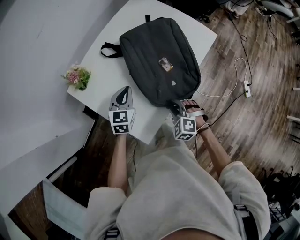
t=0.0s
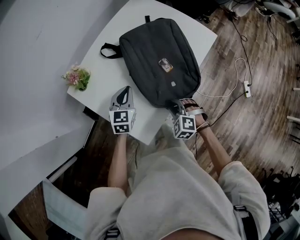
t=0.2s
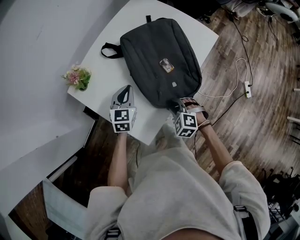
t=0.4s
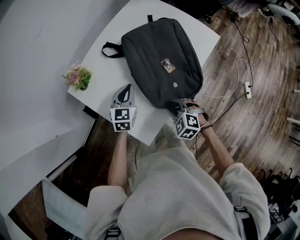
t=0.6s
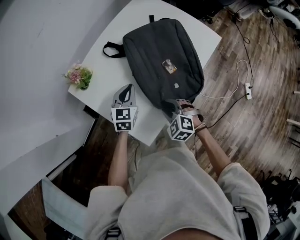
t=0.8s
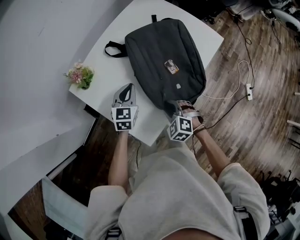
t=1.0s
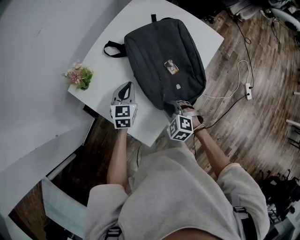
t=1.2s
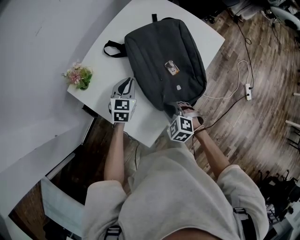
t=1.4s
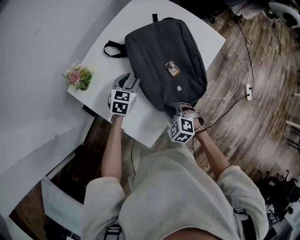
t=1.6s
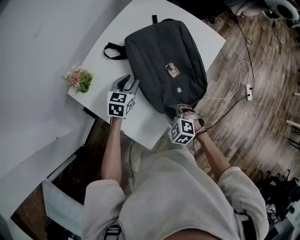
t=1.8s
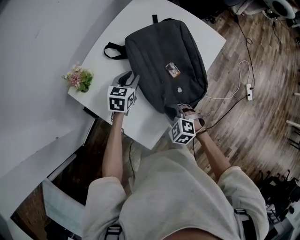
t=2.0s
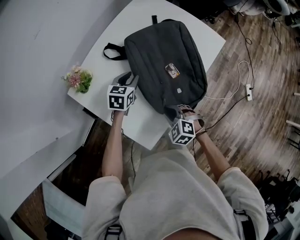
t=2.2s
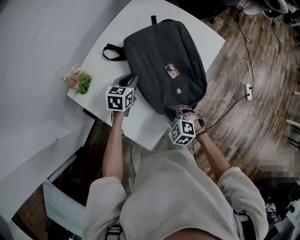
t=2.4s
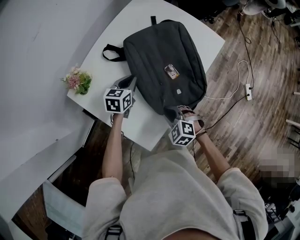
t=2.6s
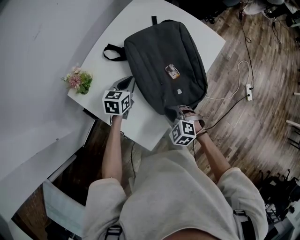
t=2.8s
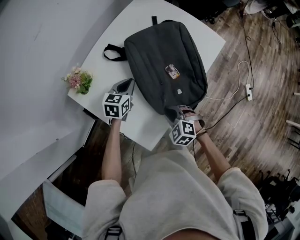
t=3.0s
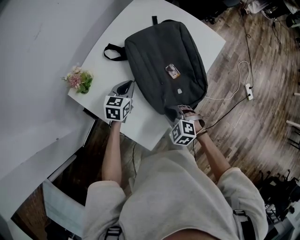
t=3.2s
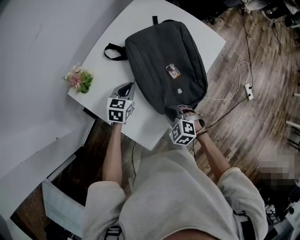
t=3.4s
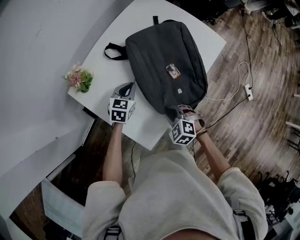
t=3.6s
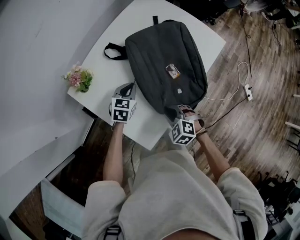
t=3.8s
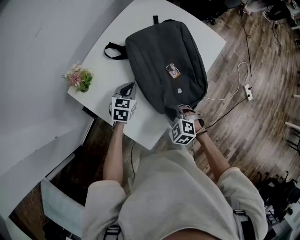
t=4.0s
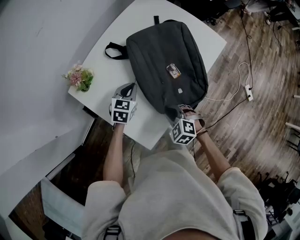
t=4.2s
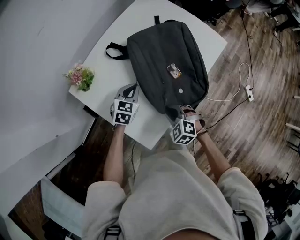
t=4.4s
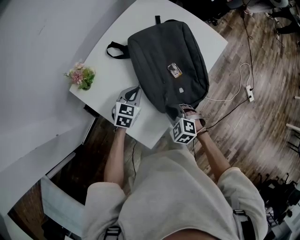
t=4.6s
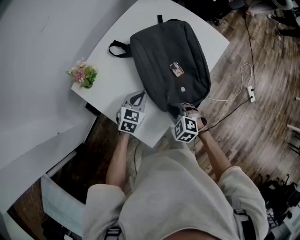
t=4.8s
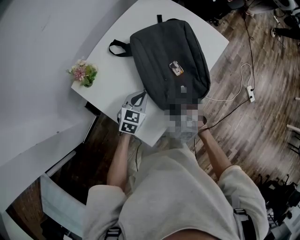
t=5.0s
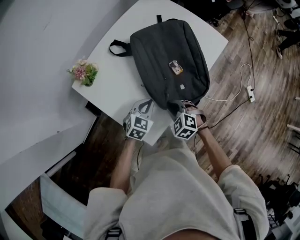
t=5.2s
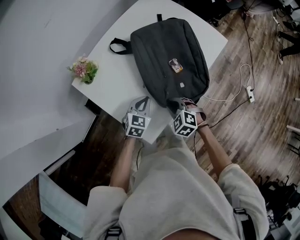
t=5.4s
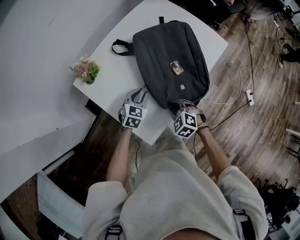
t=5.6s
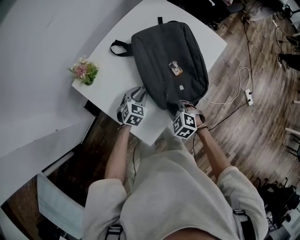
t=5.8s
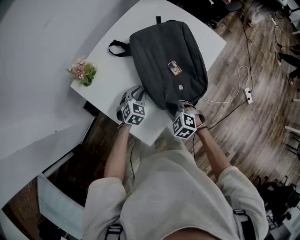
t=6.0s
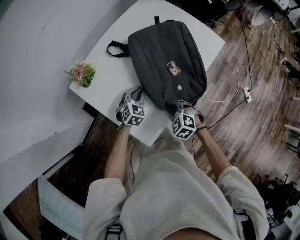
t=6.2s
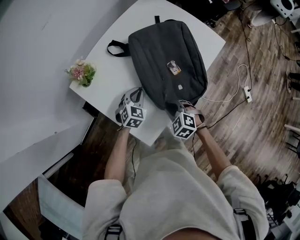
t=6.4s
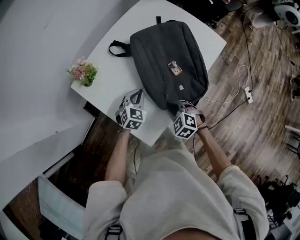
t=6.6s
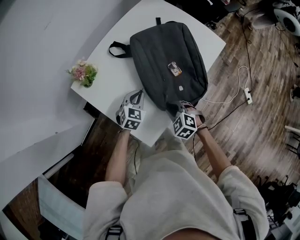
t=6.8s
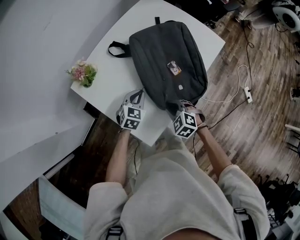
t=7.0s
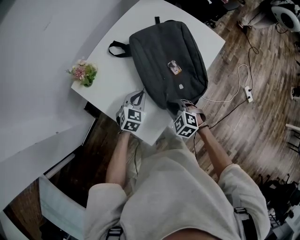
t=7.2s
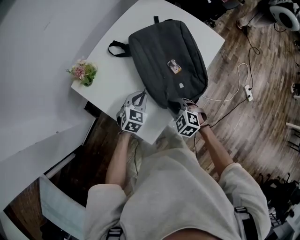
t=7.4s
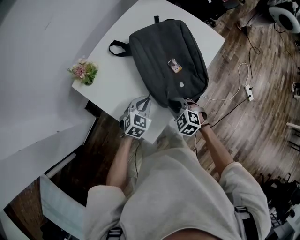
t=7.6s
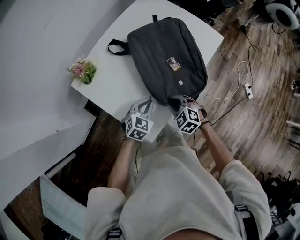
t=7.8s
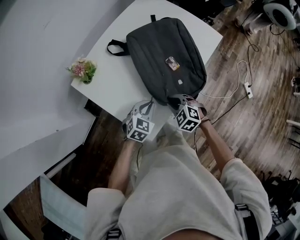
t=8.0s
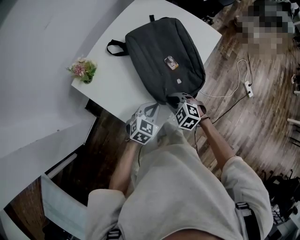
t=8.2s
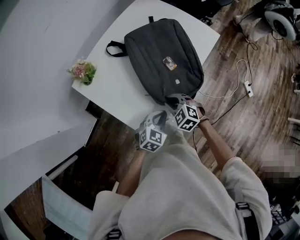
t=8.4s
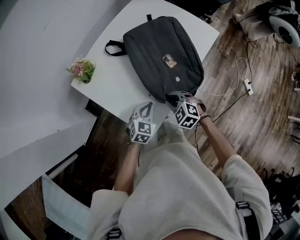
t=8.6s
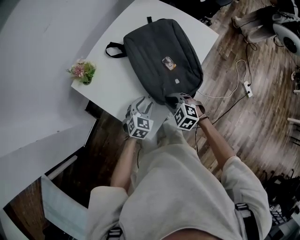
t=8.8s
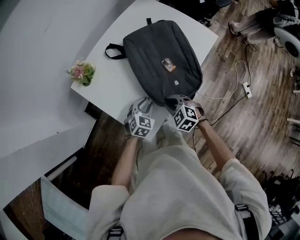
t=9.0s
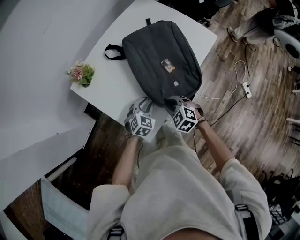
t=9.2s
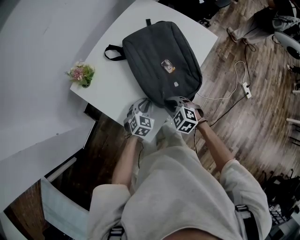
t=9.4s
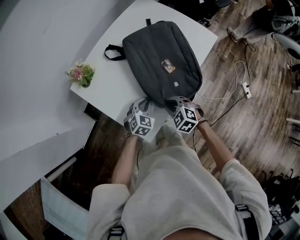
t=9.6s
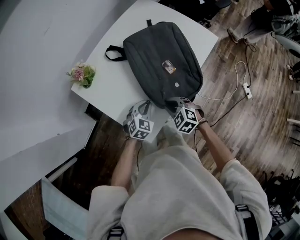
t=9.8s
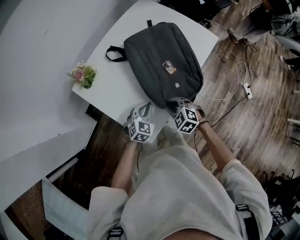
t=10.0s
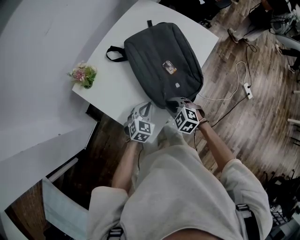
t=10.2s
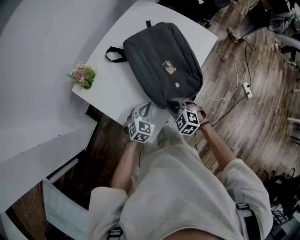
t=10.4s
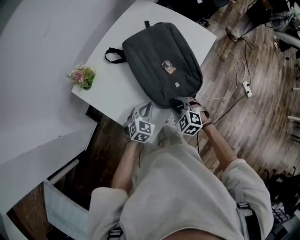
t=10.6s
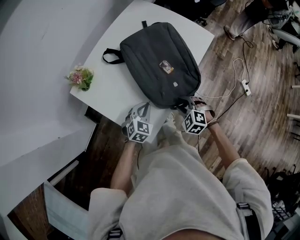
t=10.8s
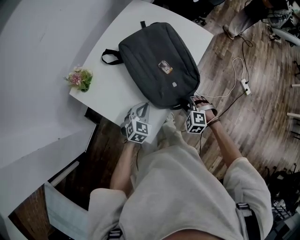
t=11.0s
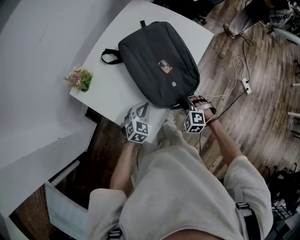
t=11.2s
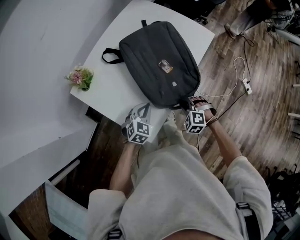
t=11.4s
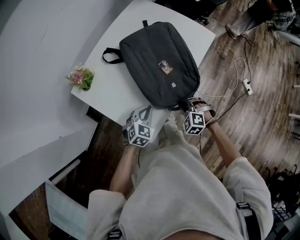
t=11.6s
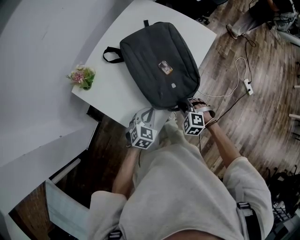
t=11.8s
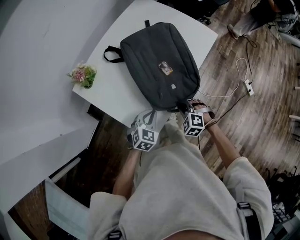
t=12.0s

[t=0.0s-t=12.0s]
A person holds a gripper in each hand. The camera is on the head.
t=0.0s to t=1.6s: The left gripper heads forward and downward, covering approximately 10 cm, and opens its fingers.
t=1.6s to t=3.0s: The left gripper closes.
t=3.0s to t=4.4s: The grippers stay close to where they were, moving slightly.
t=6.0s to t=7.6s: The left gripper moves backward, about 5 cm.
t=7.6s to t=9.0s: The left gripper moves about 10 cm backward and comes back, and opens up.
t=9.0s to t=10.4s: The left gripper closes up.
t=10.4s to t=12.0s: The right gripper moves to the right, about 5 cm.

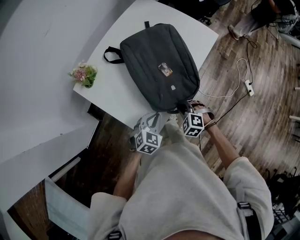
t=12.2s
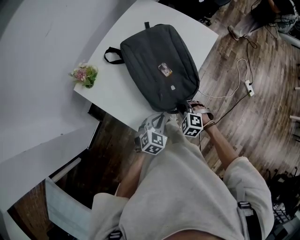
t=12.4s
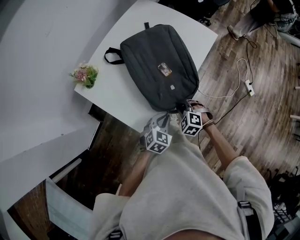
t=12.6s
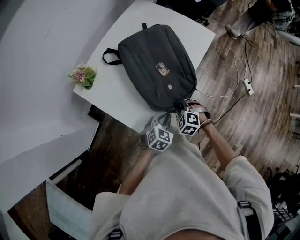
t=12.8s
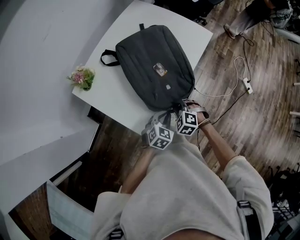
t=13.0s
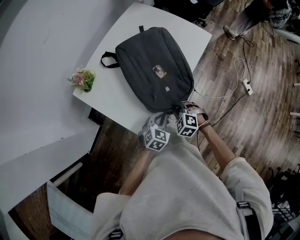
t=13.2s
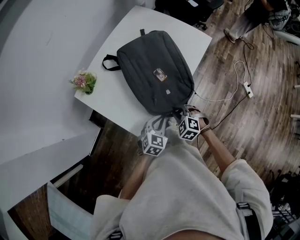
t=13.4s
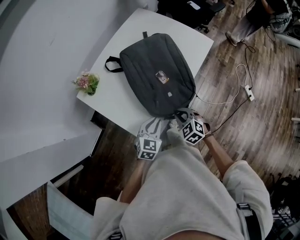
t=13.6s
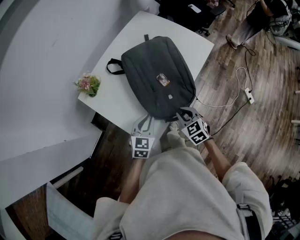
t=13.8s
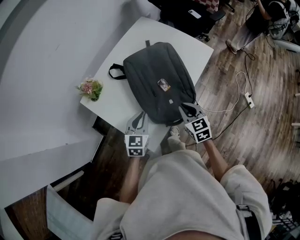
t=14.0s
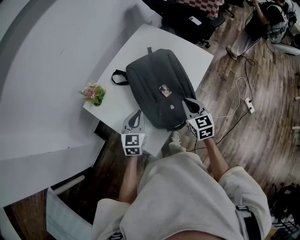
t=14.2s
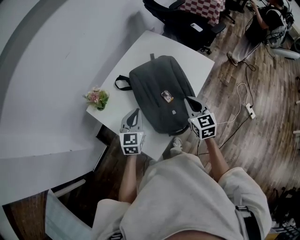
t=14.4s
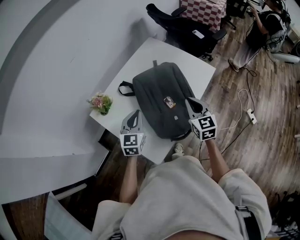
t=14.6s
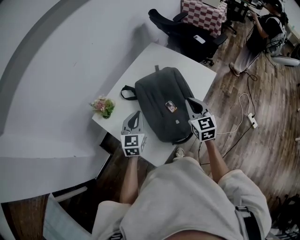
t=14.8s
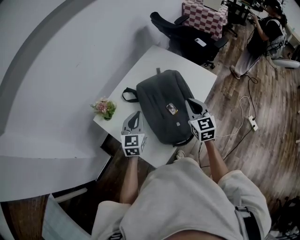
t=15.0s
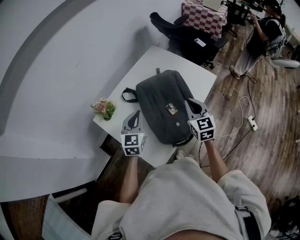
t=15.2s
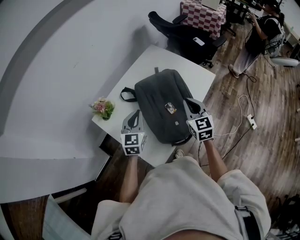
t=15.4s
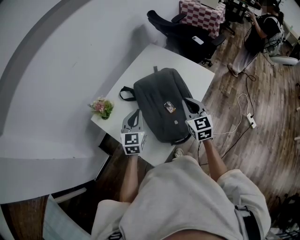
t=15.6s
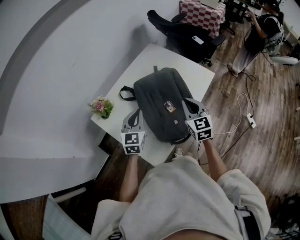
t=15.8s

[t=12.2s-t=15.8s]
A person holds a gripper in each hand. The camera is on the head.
t=12.2s to t=14.0s: The right gripper heads upward and forward, covering roughly 15 cm, and rotates around the line of its fingers by approximately 40 degrees, clockwise from behind, while the left gripper goes about 10 cm upward, forward and to the left, and swivels approximately 30 degrees.
t=14.0s to t=15.8s: The grippers both shift upward and forward by some 15 cm.

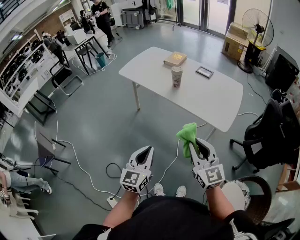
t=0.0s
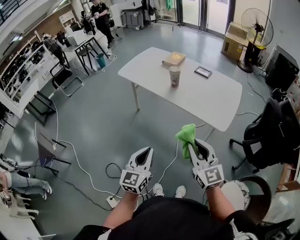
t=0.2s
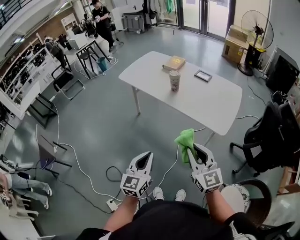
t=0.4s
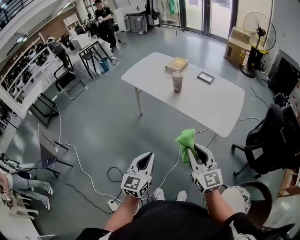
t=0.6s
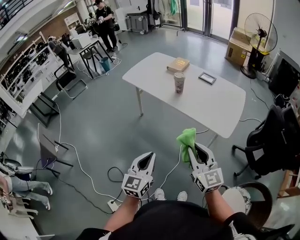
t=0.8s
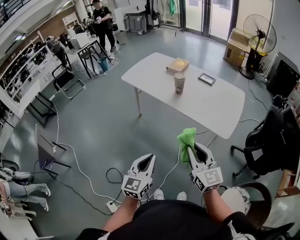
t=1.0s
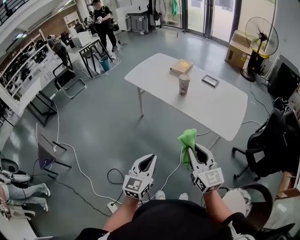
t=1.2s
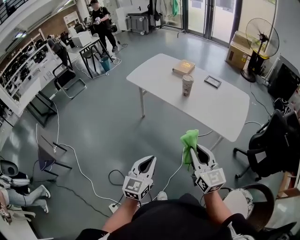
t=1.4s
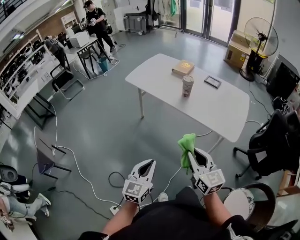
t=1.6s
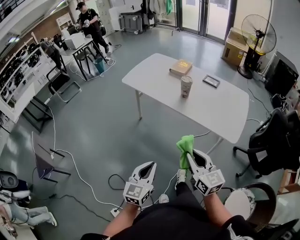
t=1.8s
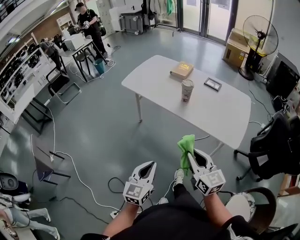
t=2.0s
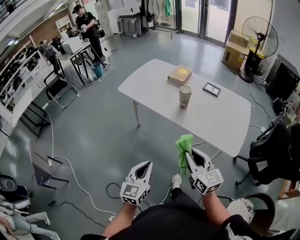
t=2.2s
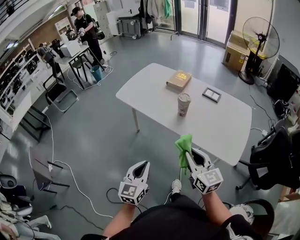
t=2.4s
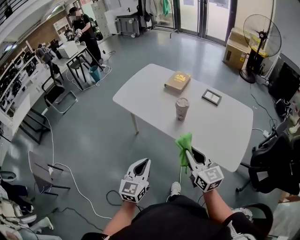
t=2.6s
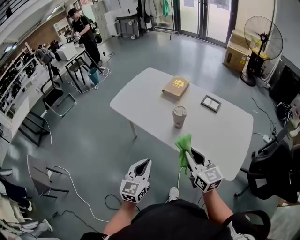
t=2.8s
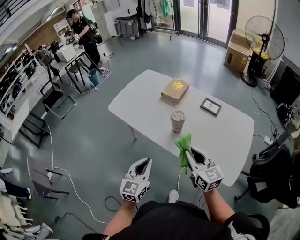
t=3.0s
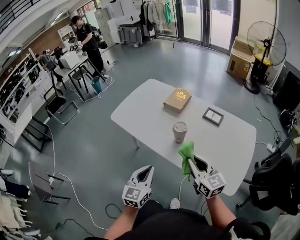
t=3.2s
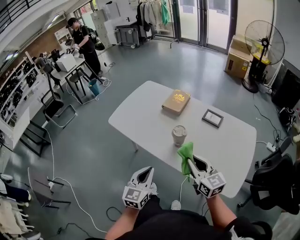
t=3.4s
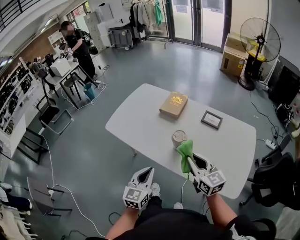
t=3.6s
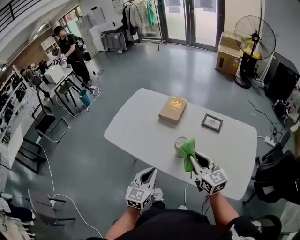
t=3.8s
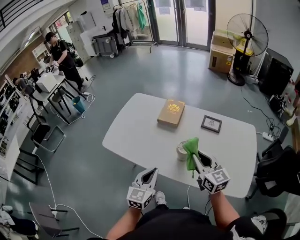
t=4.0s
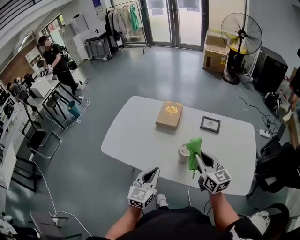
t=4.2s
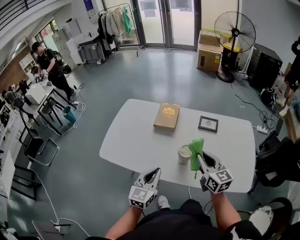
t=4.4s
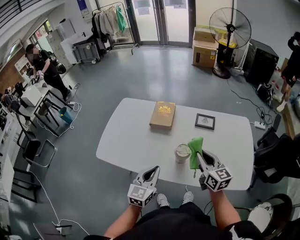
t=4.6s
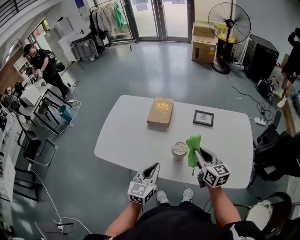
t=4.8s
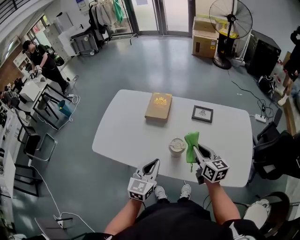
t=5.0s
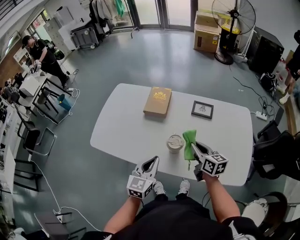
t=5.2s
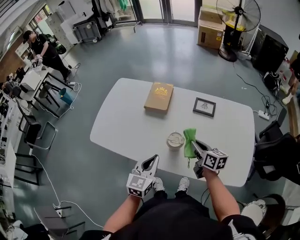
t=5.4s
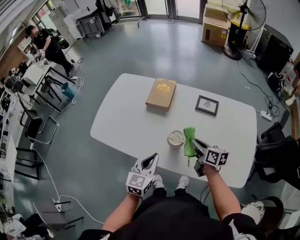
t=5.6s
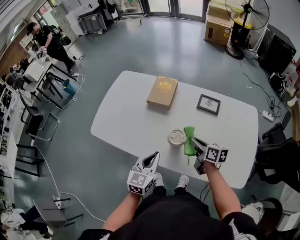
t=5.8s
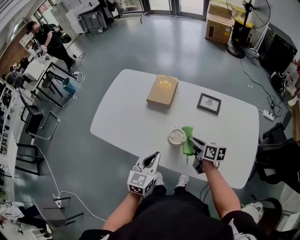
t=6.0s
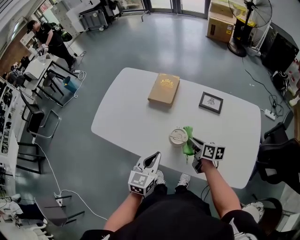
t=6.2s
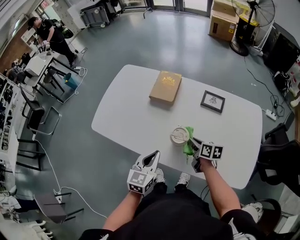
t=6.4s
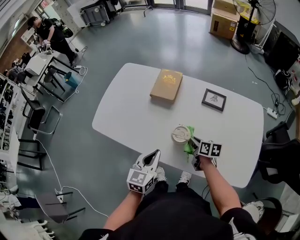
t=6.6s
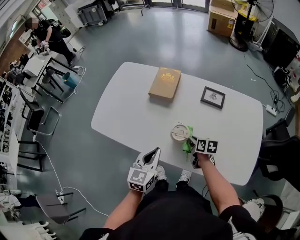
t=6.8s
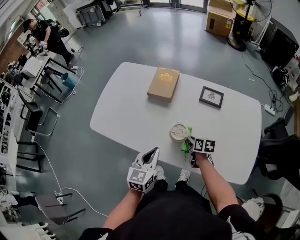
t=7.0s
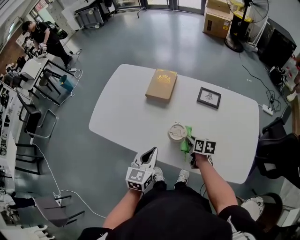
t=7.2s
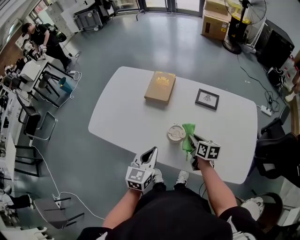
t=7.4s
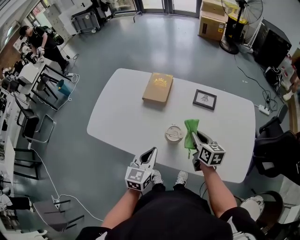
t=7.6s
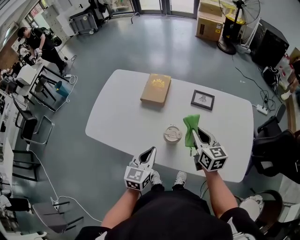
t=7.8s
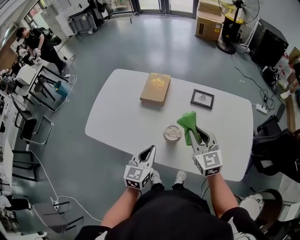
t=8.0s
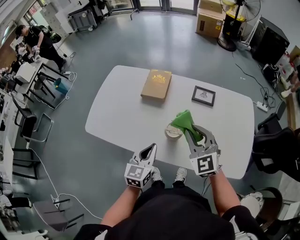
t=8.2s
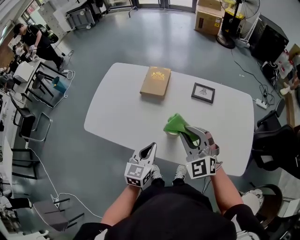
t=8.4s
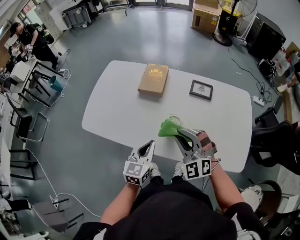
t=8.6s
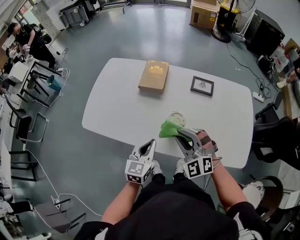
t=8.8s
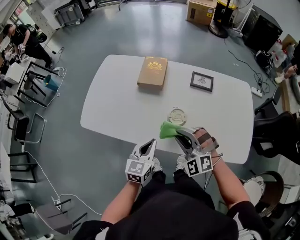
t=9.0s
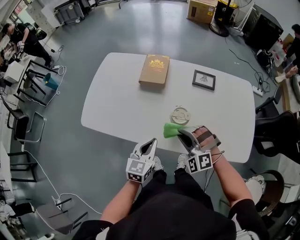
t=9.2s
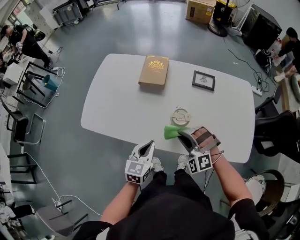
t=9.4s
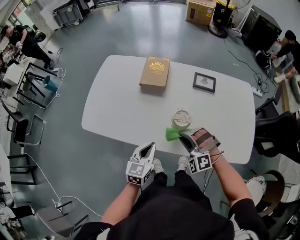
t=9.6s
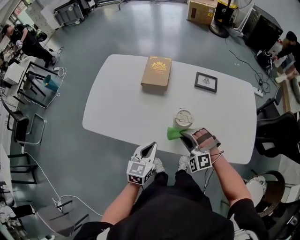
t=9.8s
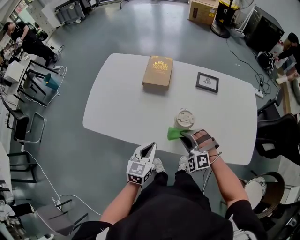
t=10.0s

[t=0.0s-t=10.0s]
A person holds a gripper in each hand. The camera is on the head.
t=0.0s to t=1.4s: Both grippers move to the left, approximately 5 cm.
t=1.4s to t=2.8s: Both grippers travel together forward, some 30 cm.
t=2.8s to t=4.2s: Both grippers travel together forward, roughly 20 cm.
t=4.2s to t=5.8s: The right gripper is displaced downward by about 15 cm, and changes its angle by some 40 degrees. The left gripper goes some 10 cm to the right and downward.
t=5.8s to t=7.2s: The right gripper is displaced downward by some 10 cm, and rotates approximately 20 degrees.
t=7.2s to t=8.6s: The right gripper moves upward, approximately 20 cm, and rolls counterclockwise, seen from behind, by some 90 degrees.
t=8.6s to t=10.0s: The right gripper goes about 15 cm downward, and turns by some 20 degrees. Meanwhile the left gripper moves downward, roughly 5 cm.
